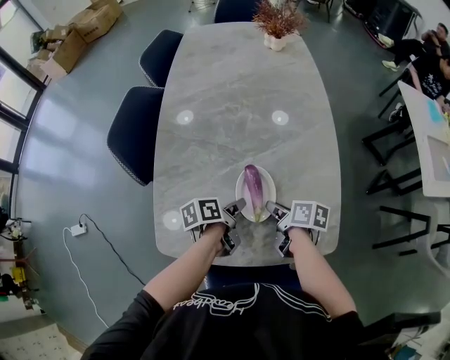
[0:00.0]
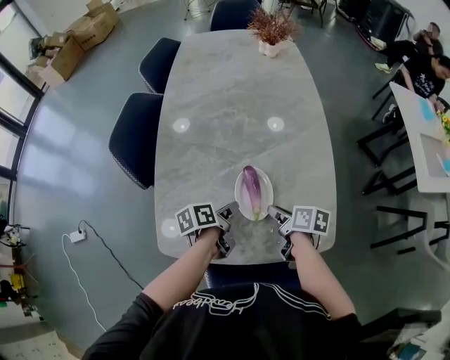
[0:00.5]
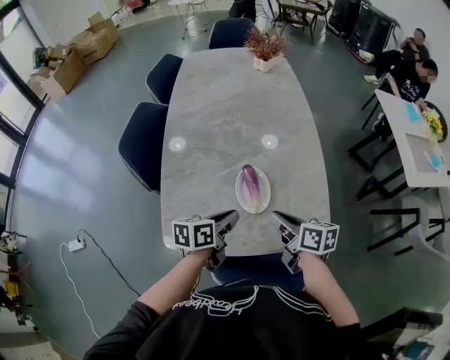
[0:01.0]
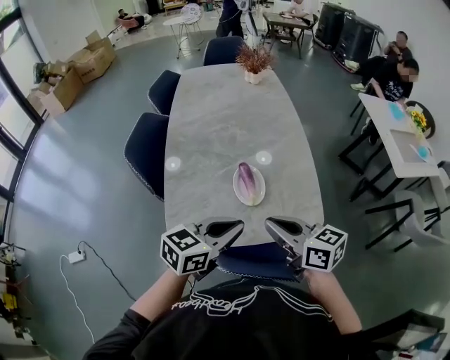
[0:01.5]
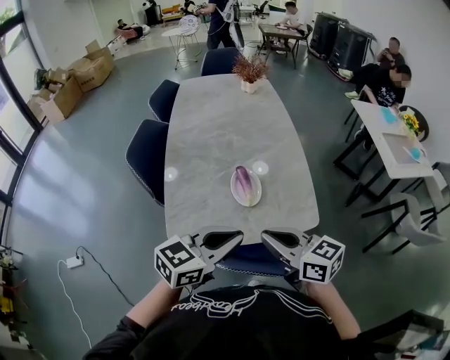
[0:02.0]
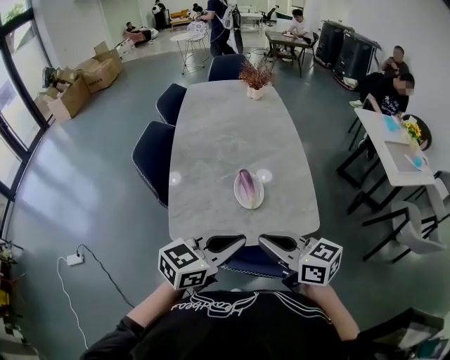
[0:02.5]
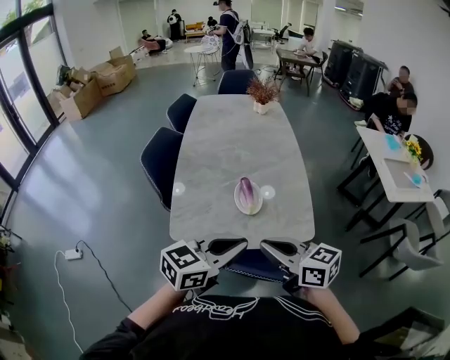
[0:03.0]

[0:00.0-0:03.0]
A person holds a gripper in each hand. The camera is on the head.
0:00.0 to 0:01.5: Both grippers move upward and backward, some 30 cm. The left gripper rolls clockwise, seen from behind, by approximately 60 degrees, while the right gripper rotates around the line of its fingers by roughly 40 degrees, counterclockwise from behind.
0:01.5 to 0:03.0: The right gripper moves backward, about 10 cm, while the left gripper moves backward and upward, some 10 cm.

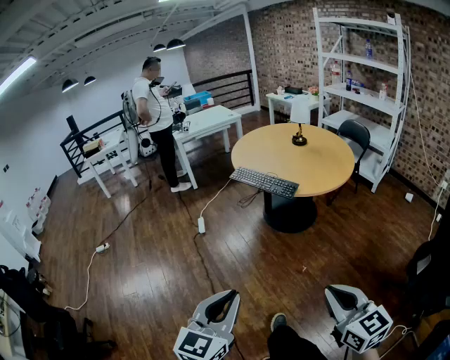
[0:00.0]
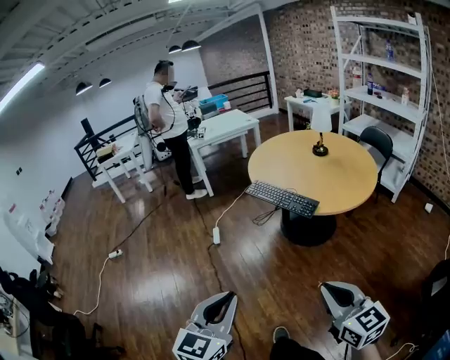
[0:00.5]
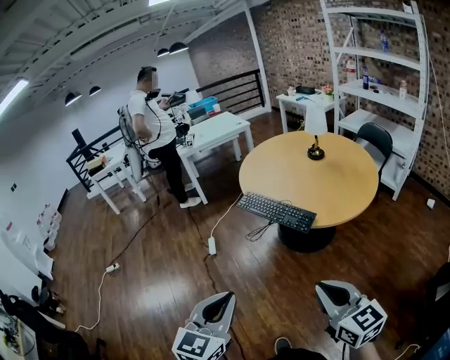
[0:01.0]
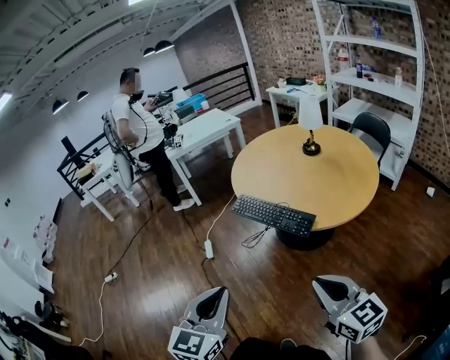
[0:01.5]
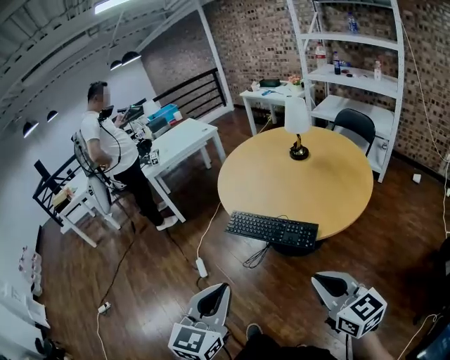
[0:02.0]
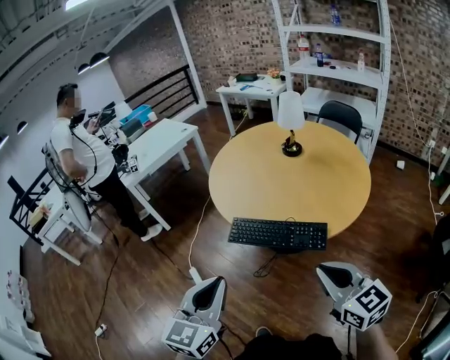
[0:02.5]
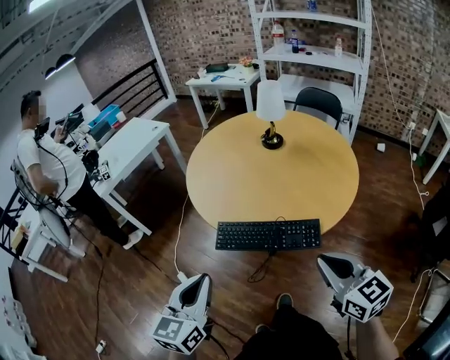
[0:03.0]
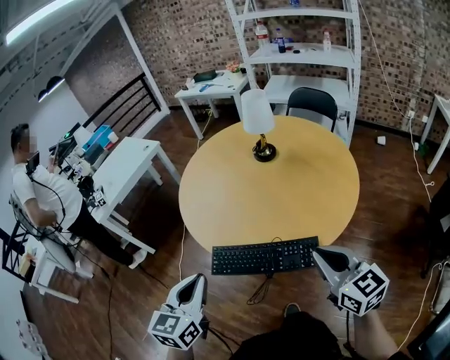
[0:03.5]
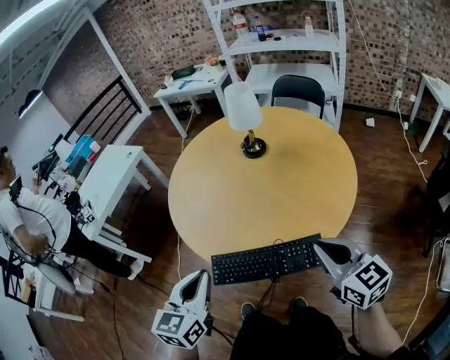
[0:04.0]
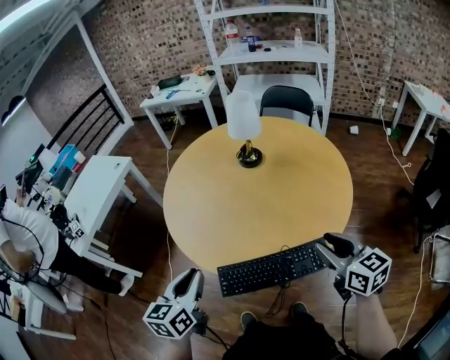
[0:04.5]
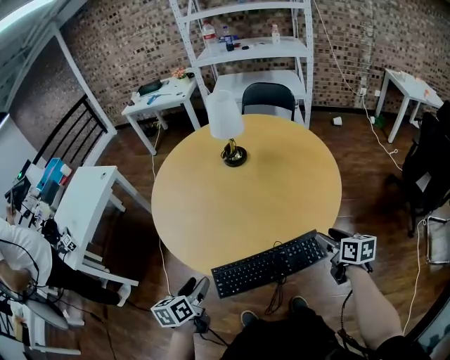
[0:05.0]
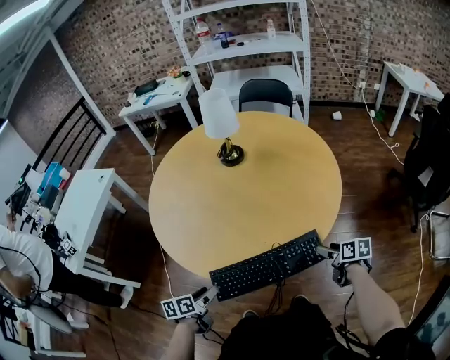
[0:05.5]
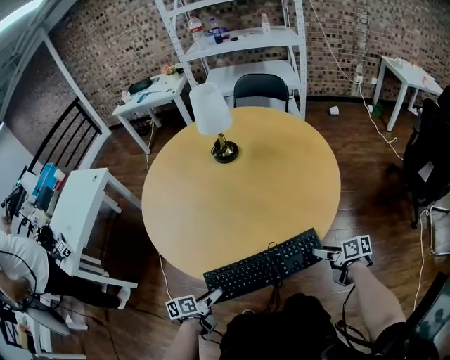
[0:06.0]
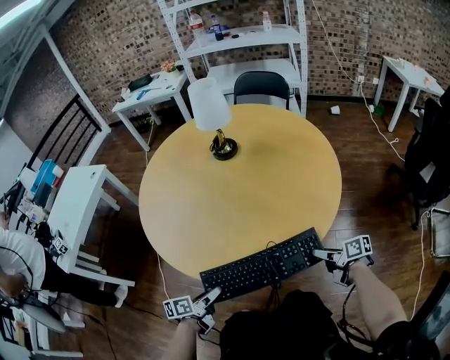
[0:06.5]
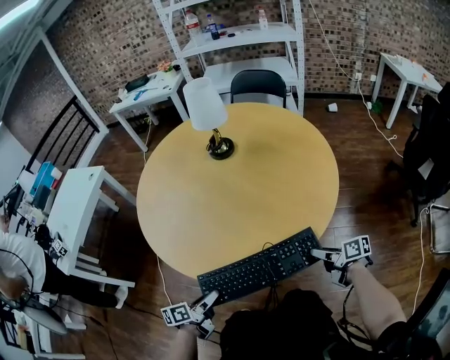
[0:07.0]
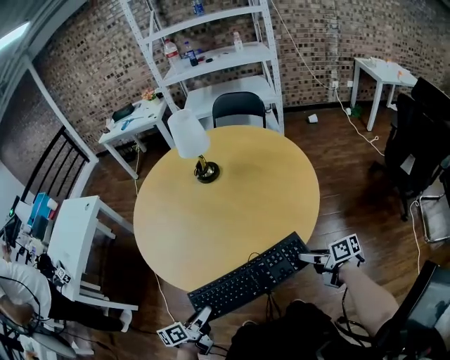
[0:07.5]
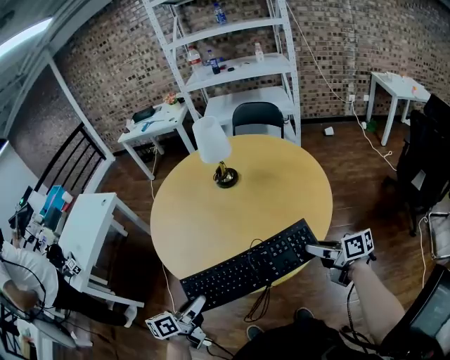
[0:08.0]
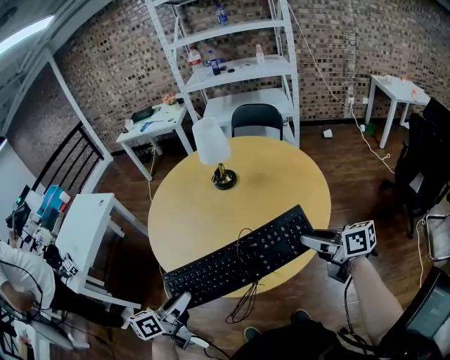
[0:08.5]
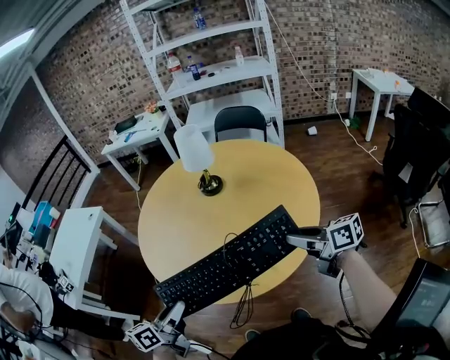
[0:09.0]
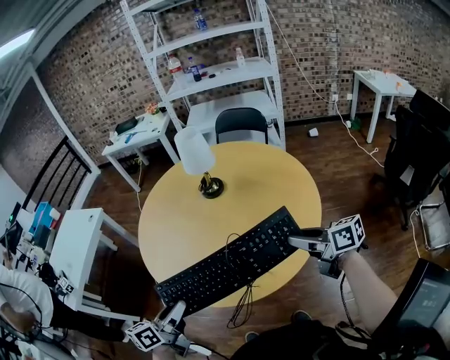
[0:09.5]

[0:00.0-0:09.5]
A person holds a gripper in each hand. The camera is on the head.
0:00.0 to 0:02.0: Both grippers are carried forward, roughly 50 cm.
0:02.0 to 0:04.0: Both grippers move forward, some 30 cm. The right gripper rotates some 30 degrees. The left gripper rotates about 20 degrees.
0:04.0 to 0:05.5: The two grippers go roughly 30 cm downward. The left gripper rotates some 50 degrees, and opens. Meanwhile the right gripper rotates around the line of its fingers by roughly 50 degrees, clockwise from behind, and opens its fingers.
0:05.5 to 0:07.5: The left gripper moves about 5 cm, and closes up. Meanwhile the right gripper ends up some 5 cm from where it was, rotates approximately 20 degrees, and closes.
0:07.5 to 0:09.5: The grippers both shift upward by approximately 20 cm. The right gripper changes its angle by about 20 degrees.

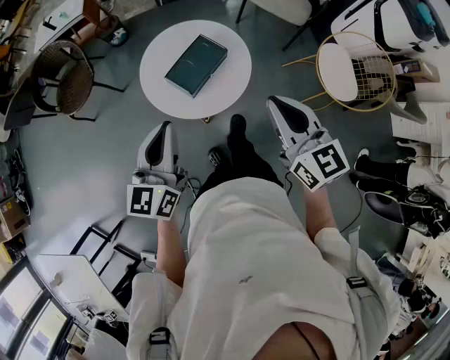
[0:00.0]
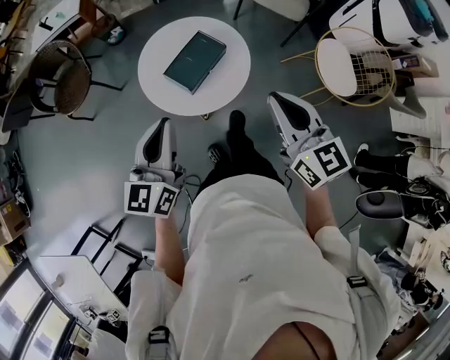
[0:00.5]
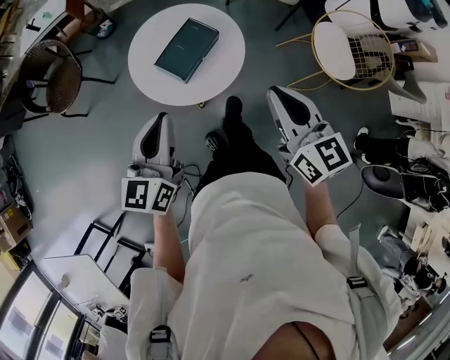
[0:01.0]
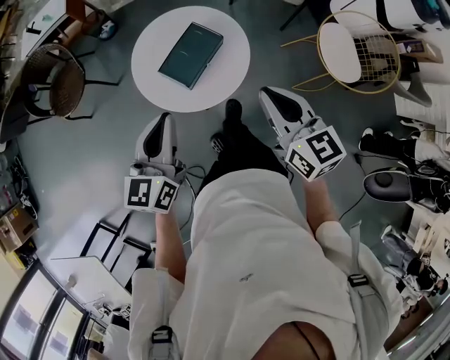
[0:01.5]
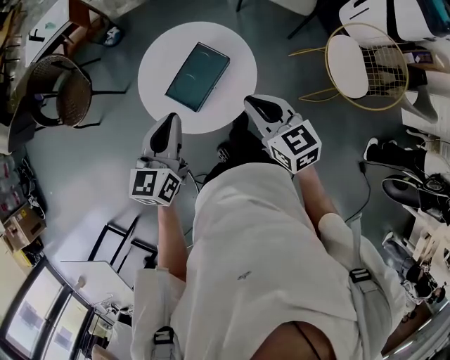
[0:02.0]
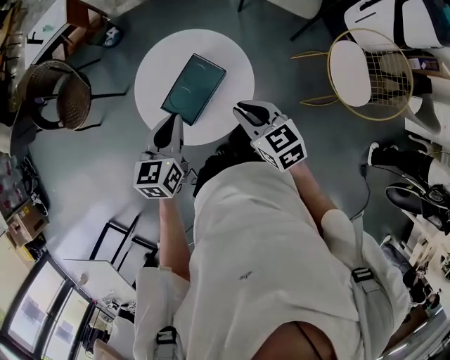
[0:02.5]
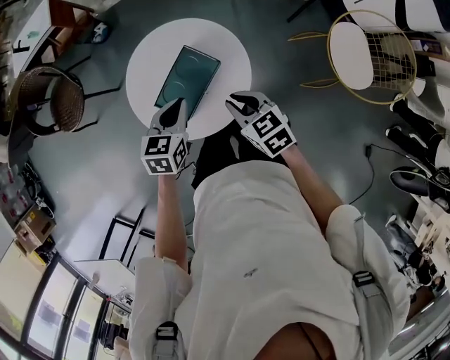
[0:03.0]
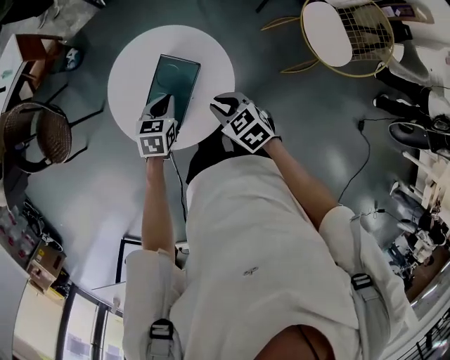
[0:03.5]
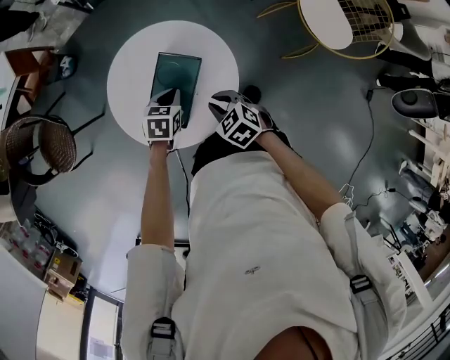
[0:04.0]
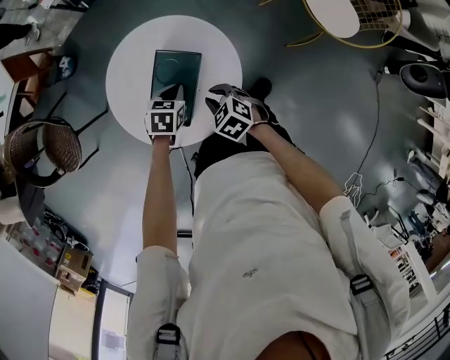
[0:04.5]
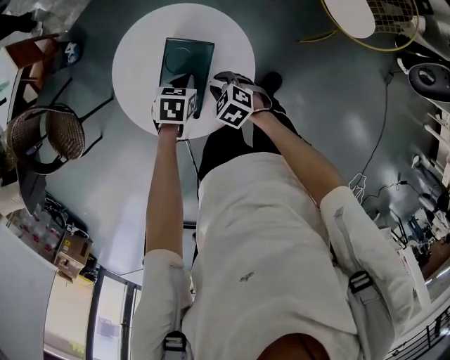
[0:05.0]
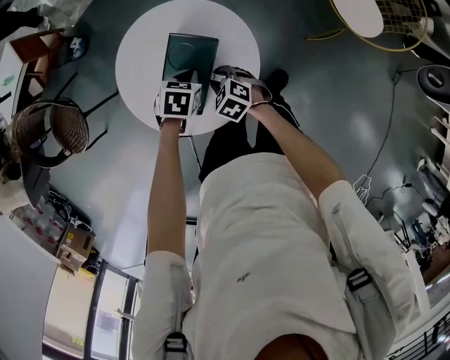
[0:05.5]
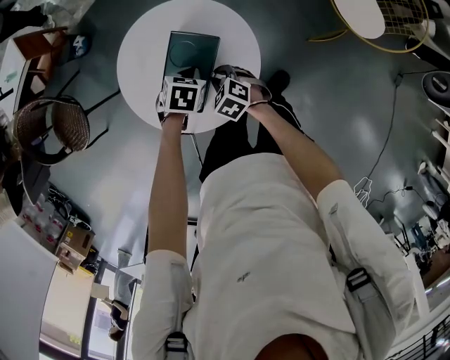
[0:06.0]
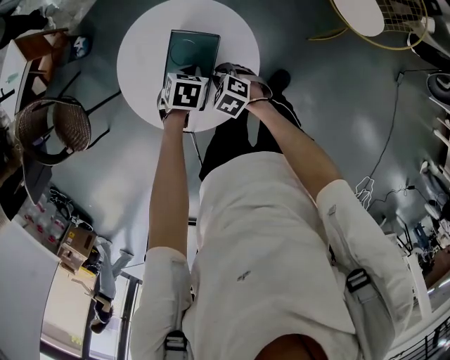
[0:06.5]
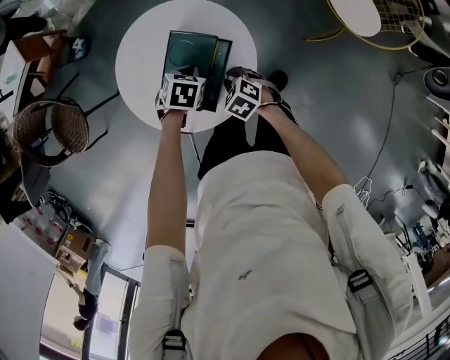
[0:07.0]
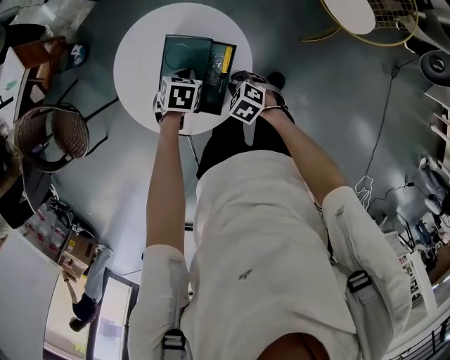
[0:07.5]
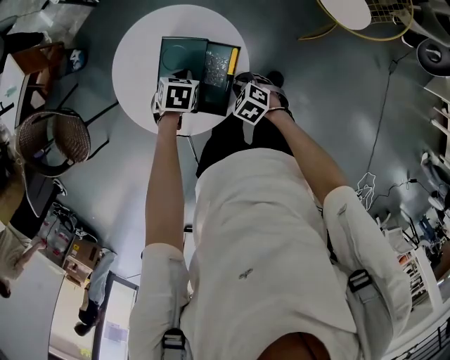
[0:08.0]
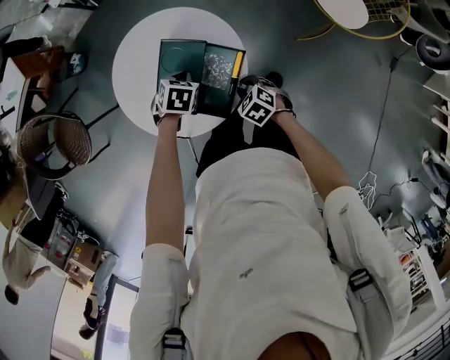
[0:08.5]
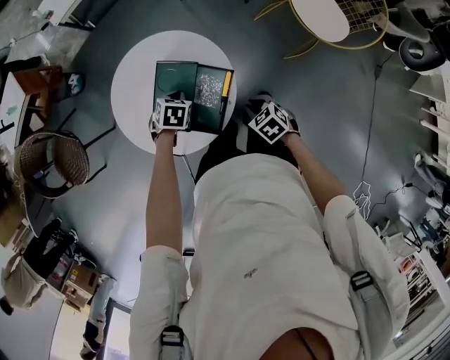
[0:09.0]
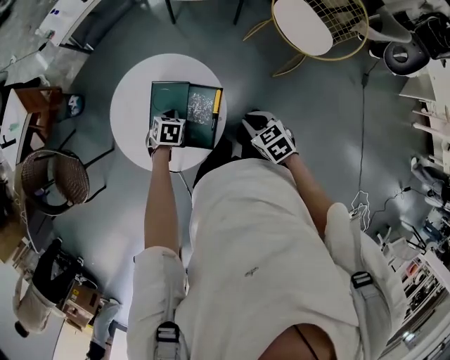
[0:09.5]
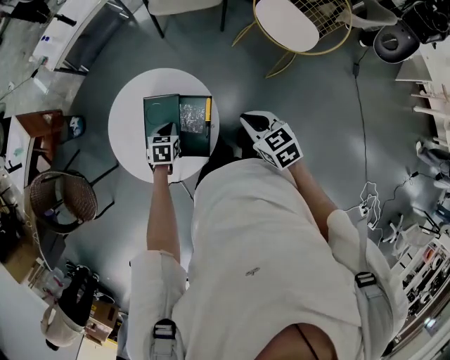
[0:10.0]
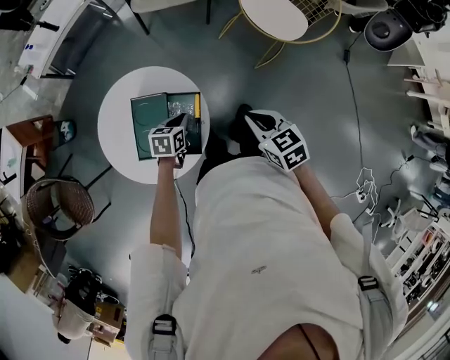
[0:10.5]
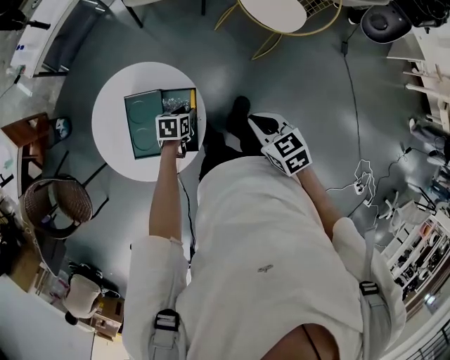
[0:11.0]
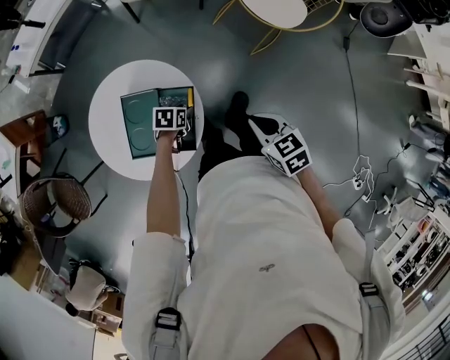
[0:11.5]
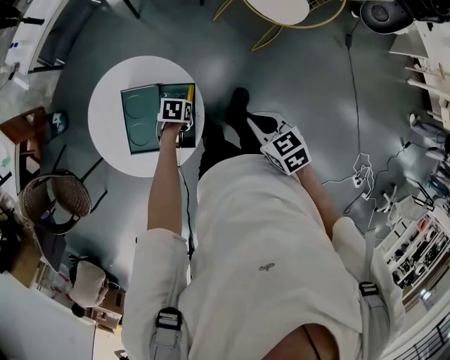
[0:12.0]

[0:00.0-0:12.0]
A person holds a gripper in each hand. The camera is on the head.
0:00.0 to 0:02.0: Both grippers move forward and downward, about 15 cm.
0:02.0 to 0:04.0: The right gripper goes some 20 cm downward, and tips its fingers downward by approximately 30 degrees. The left gripper moves downward and forward, roughly 30 cm, and tips its fingers downward by roughly 40 degrees.
0:04.0 to 0:06.0: The right gripper shifts about 10 cm downward.
0:06.0 to 0:08.0: The right gripper heads to the right and backward, covering approximately 10 cm.
0:08.0 to 0:10.0: The right gripper moves upward and to the right, approximately 25 cm, and changes its angle by roughly 40 degrees.
0:10.0 to 0:12.0: The right gripper ends up approximately 5 cm from where it was, while the left gripper shifts by some 15 cm, turns by roughly 30 degrees, and opens up.

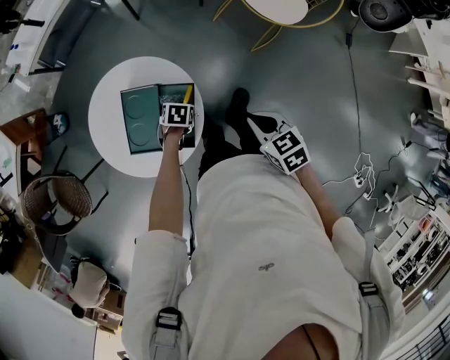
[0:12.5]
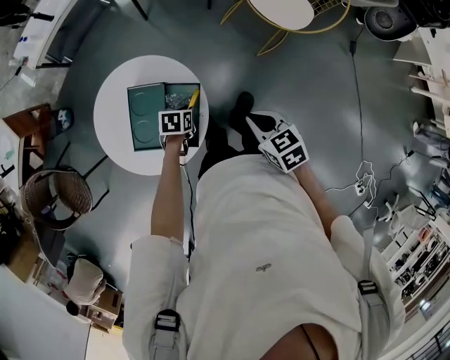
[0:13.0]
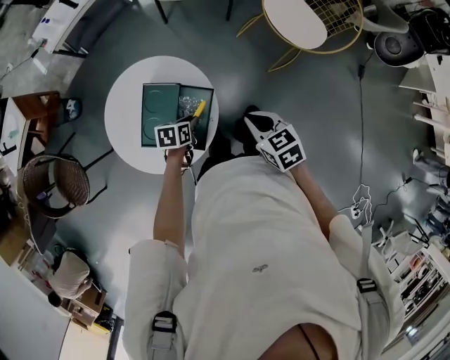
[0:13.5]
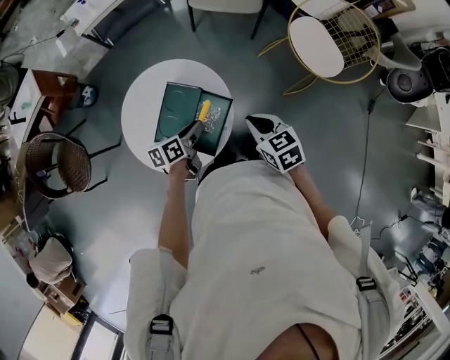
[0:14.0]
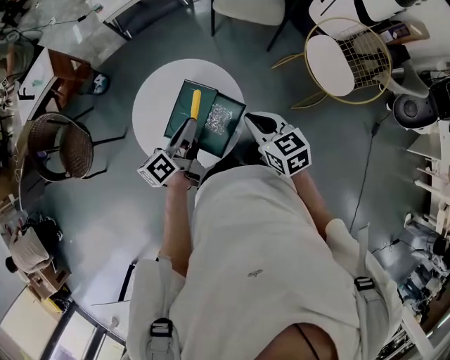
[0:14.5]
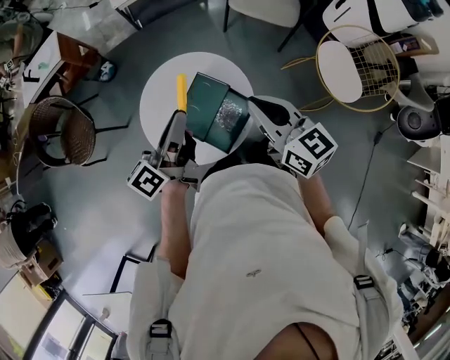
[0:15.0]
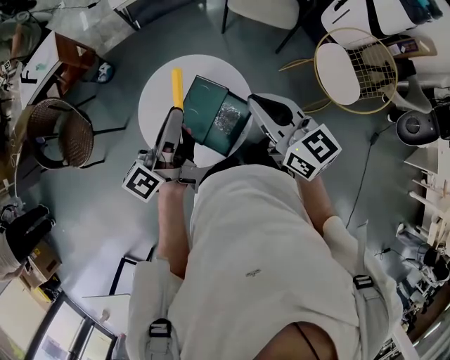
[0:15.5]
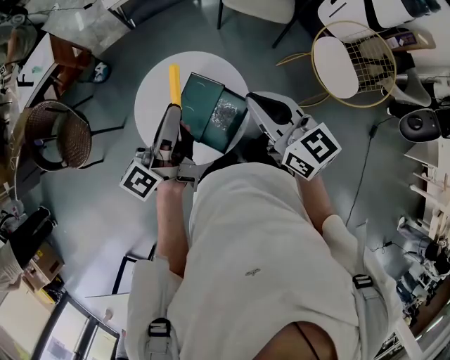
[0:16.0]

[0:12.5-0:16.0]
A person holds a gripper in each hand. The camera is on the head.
0:12.5 to 0:14.5: The left gripper heads upward, covering about 30 cm, and points its fingers some 60 degrees further upward, while the right gripper moves roughly 20 cm, and rotates roughly 30 degrees.
0:14.5 to 0:16.0: Both grippers travel together upward, some 15 cm. The right gripper rotates approximately 20 degrees; the left gripper swivels approximately 20 degrees.
